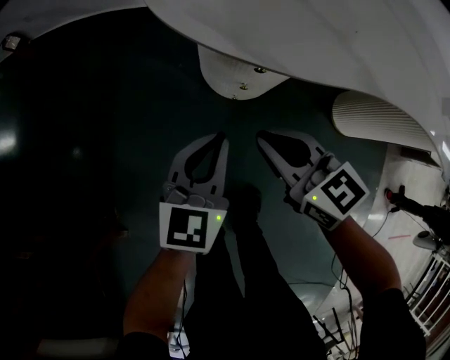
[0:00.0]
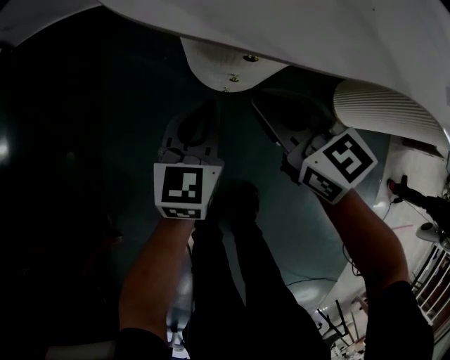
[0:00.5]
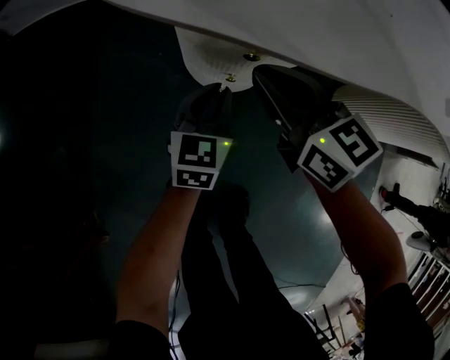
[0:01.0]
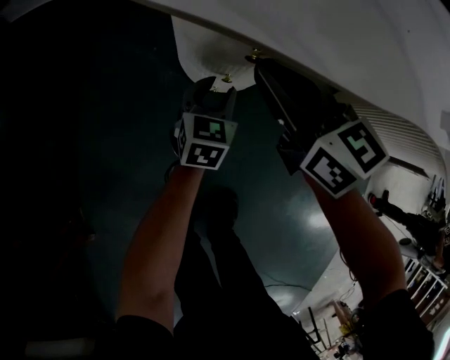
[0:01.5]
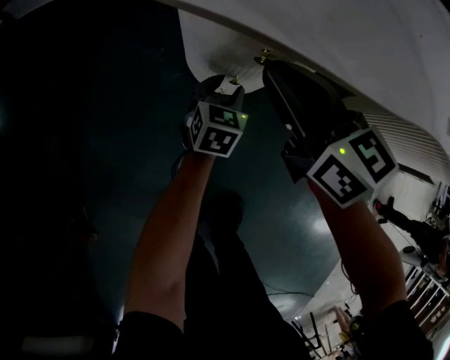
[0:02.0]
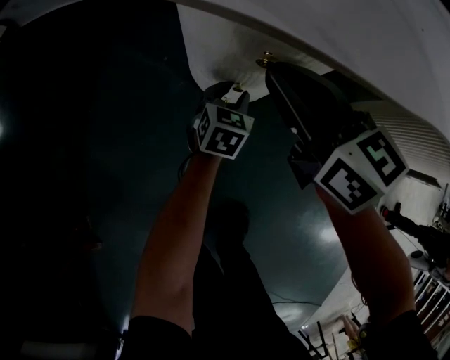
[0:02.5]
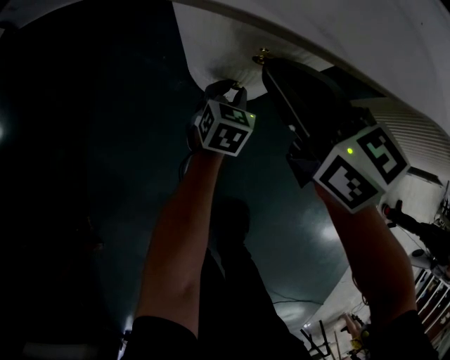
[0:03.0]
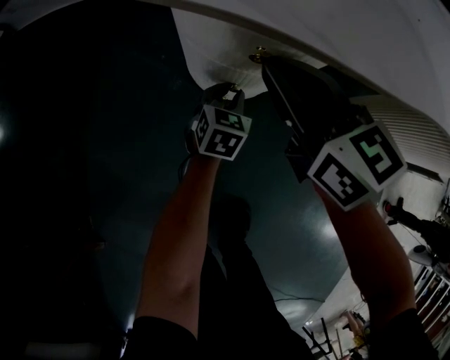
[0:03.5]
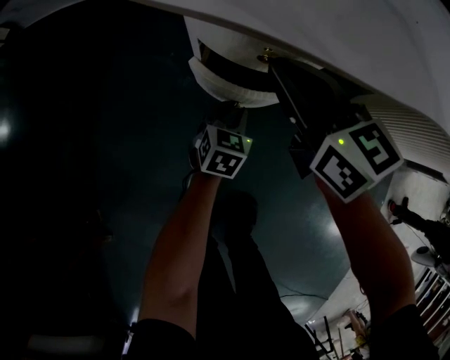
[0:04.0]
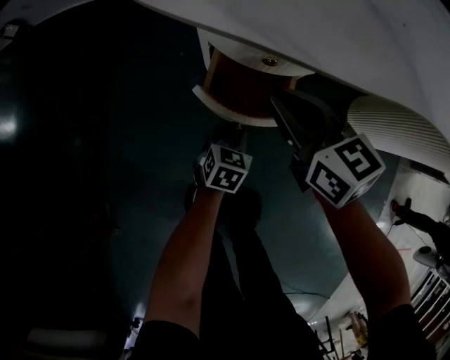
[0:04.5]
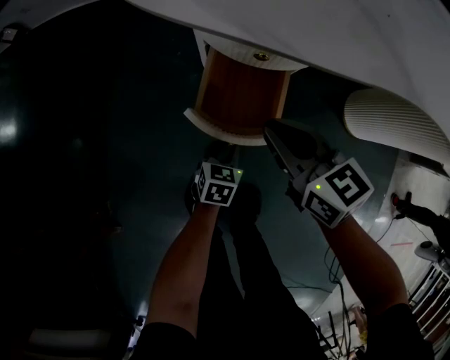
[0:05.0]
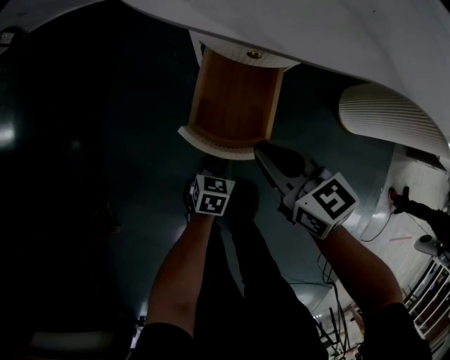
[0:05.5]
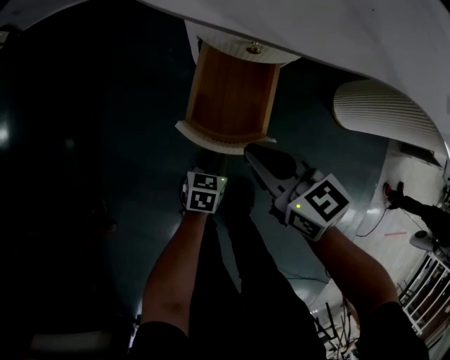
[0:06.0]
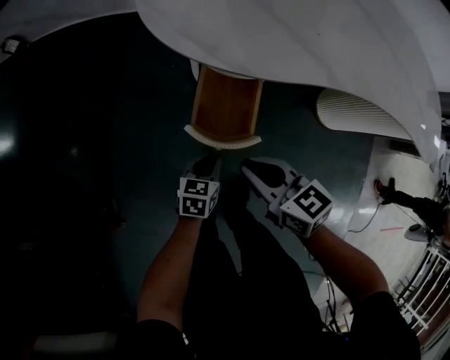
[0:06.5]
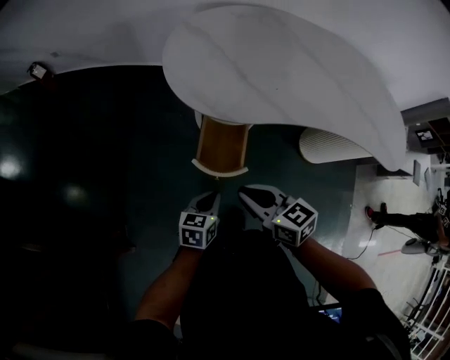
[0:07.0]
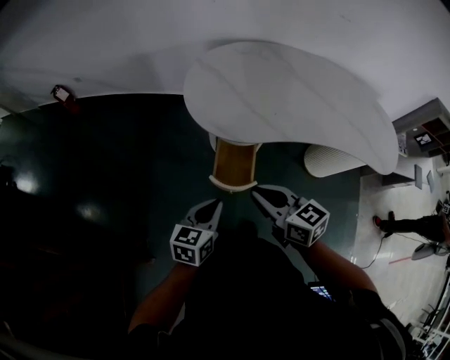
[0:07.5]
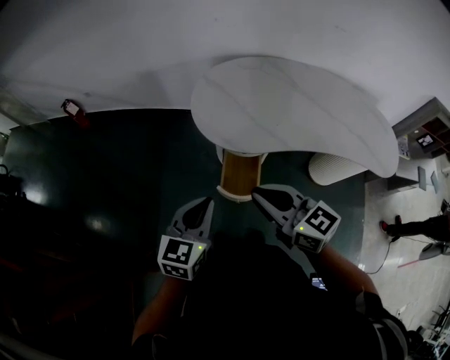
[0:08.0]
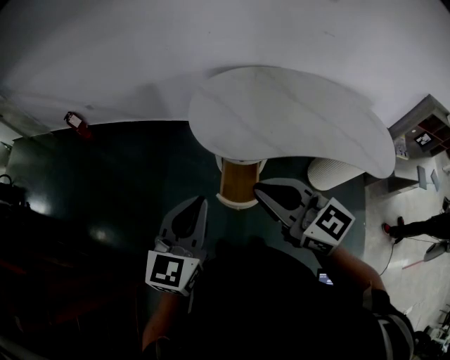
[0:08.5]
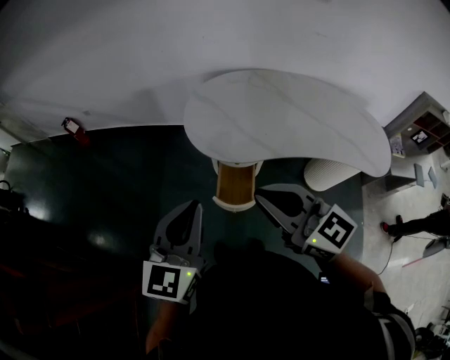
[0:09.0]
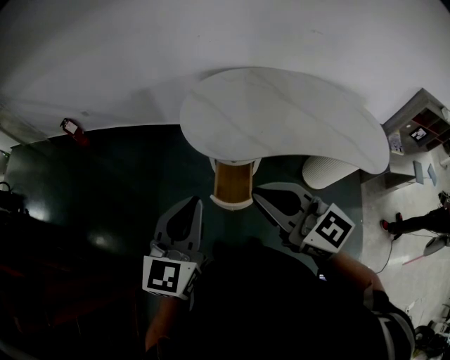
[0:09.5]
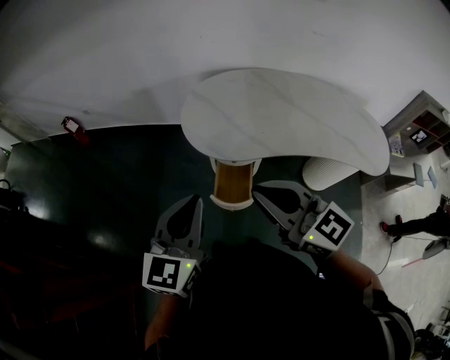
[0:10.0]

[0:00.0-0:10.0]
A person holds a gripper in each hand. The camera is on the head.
0:00.0 to 0:02.0: The left gripper heads downward and forward, covering approximately 30 cm, and opens; the right gripper shifts about 15 cm forward, downward and to the right.
0:02.0 to 0:04.0: The left gripper travels backward by about 5 cm.
0:04.0 to 0:06.0: The two grippers go roughly 15 cm backward.
0:06.0 to 0:08.0: The two grippers go approximately 60 cm upward. The left gripper changes its angle by about 30 degrees, and closes. The right gripper changes its angle by approximately 20 degrees.
0:08.0 to 0:10.0: The two grippers go roughly 10 cm upward.

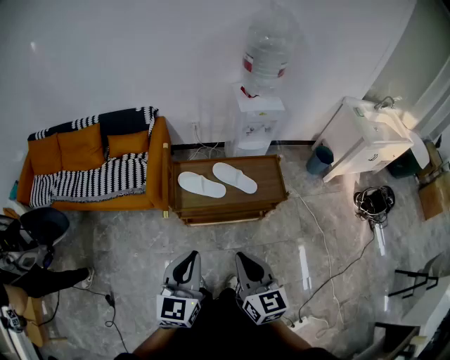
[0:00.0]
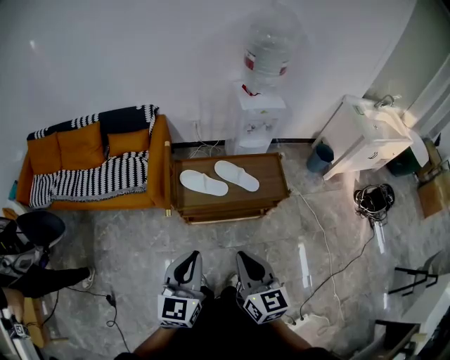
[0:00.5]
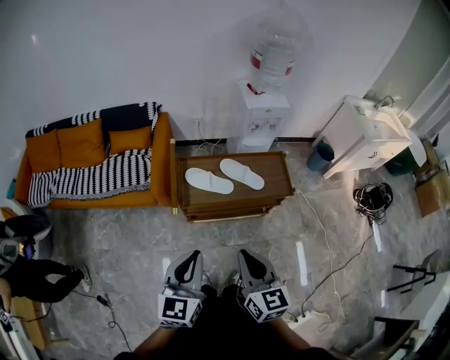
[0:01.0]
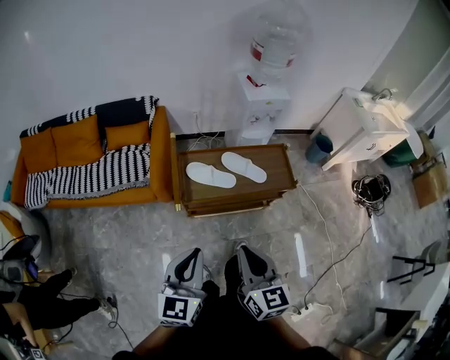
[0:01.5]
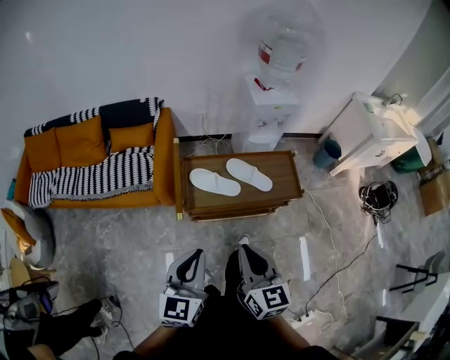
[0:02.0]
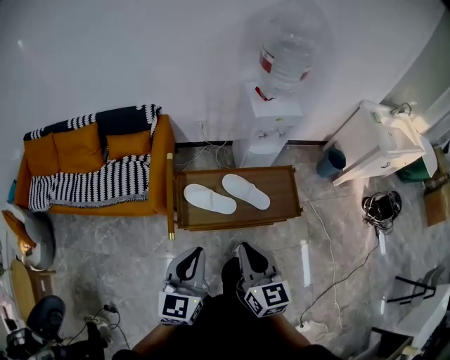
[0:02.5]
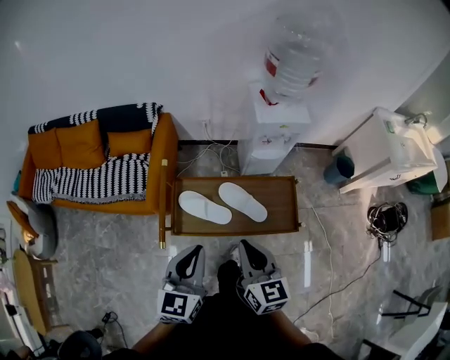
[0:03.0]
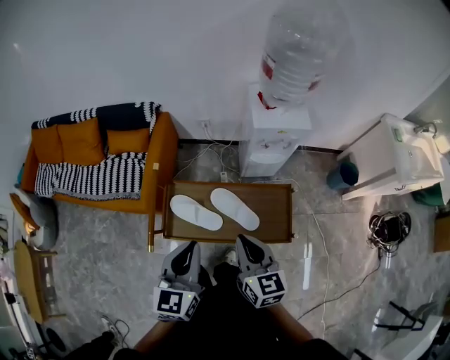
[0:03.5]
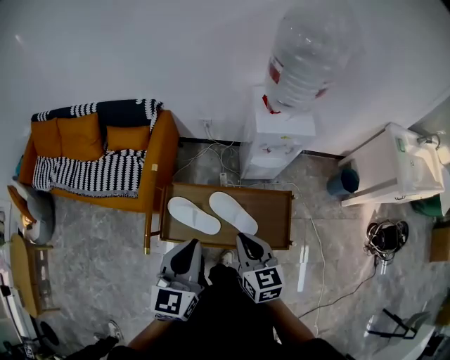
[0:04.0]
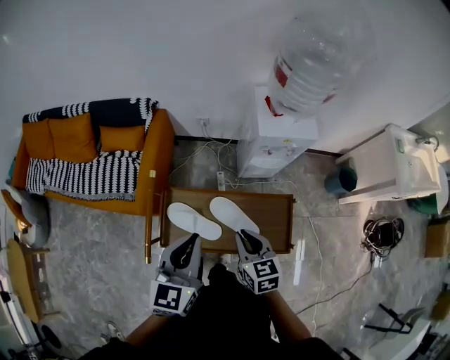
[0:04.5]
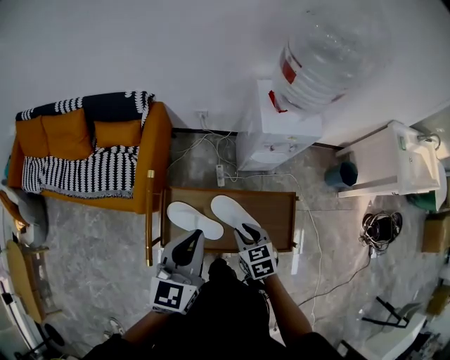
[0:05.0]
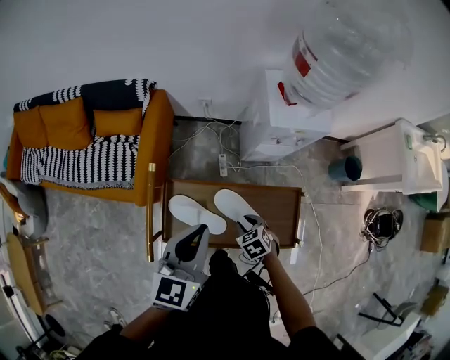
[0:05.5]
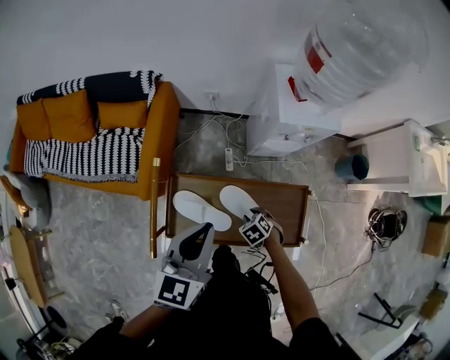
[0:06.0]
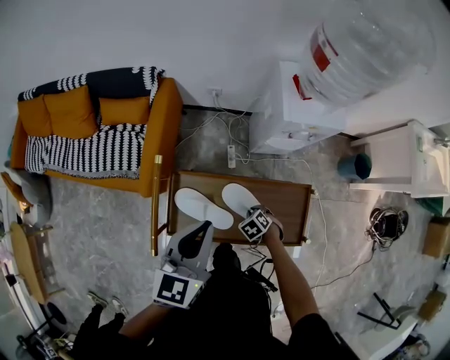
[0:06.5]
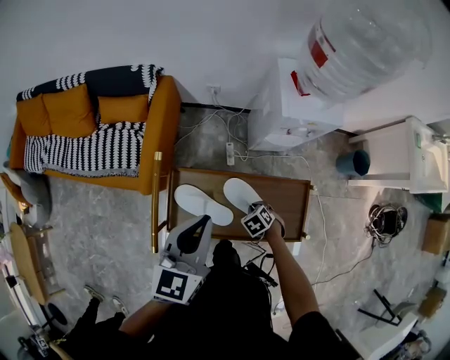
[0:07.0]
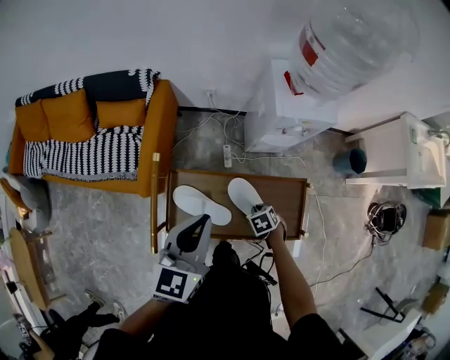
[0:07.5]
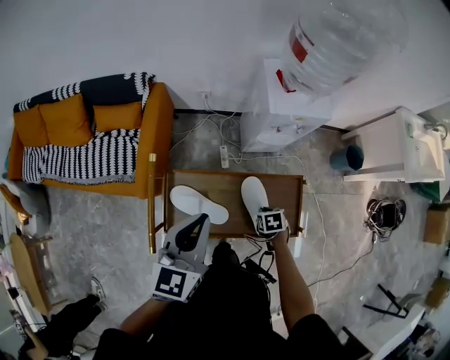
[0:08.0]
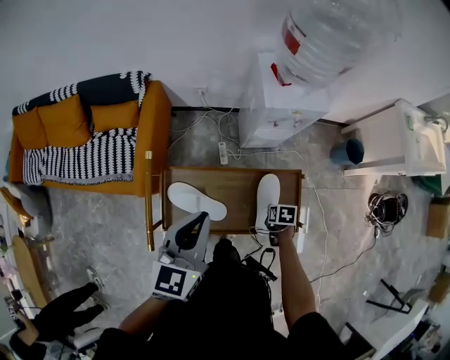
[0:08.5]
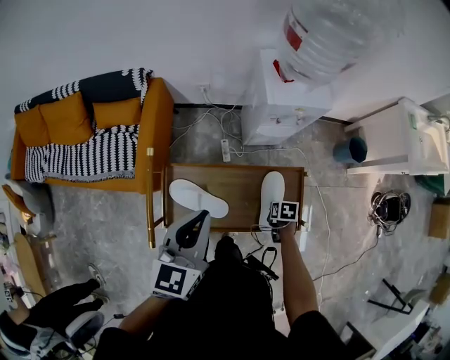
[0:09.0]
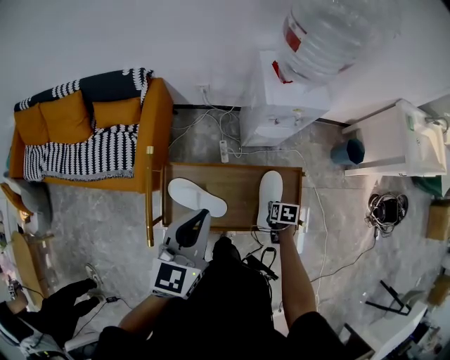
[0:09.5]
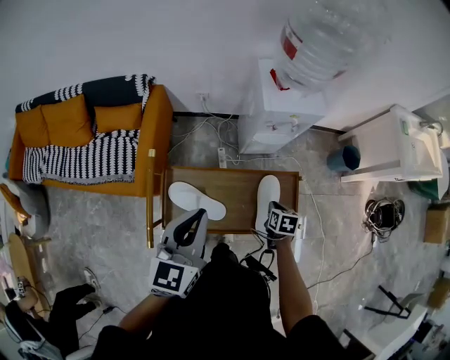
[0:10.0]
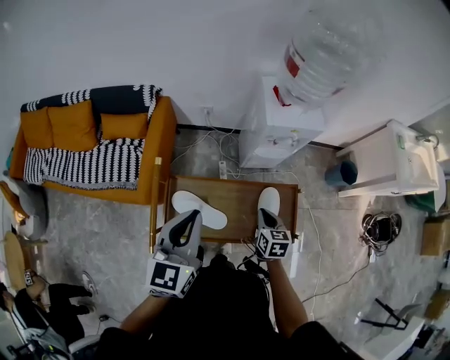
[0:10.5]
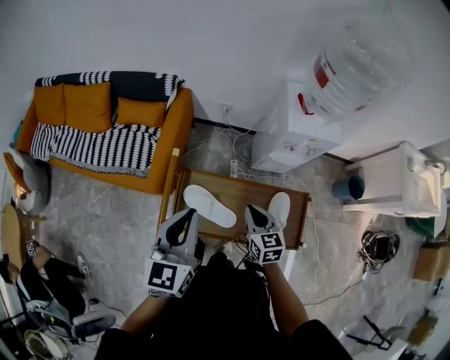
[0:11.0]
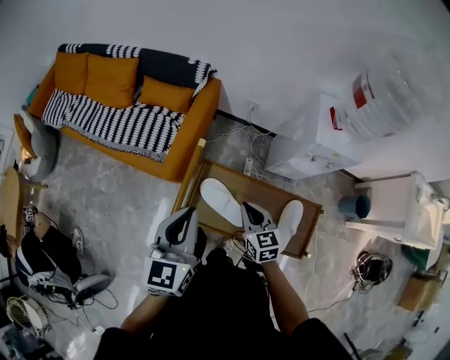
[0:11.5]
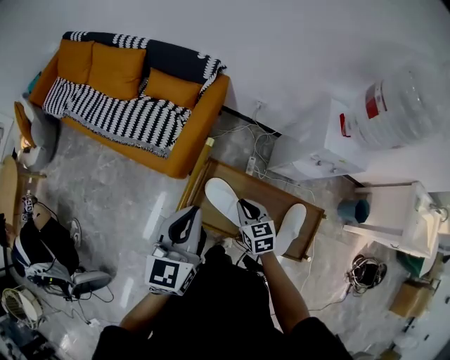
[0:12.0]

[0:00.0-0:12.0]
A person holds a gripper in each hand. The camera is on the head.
0:00.0 to 0:02.0: The right gripper moves to the left and forward, roughly 10 cm. The left gripper shifts roughly 5 cm to the left.
0:02.0 to 0:04.0: Both grippers move forward and to the right, roughly 30 cm.
0:04.0 to 0:06.0: The left gripper moves approximately 15 cm. The right gripper moves downward, roughly 30 cm, angles its fingers downward, by roughly 50 degrees, and opens its fingers.
0:06.0 to 0:08.0: The right gripper changes place by roughly 10 cm, and changes its angle by some 40 degrees.
0:08.0 to 0:10.0: The right gripper is displaced upward by about 5 cm, and rotates some 20 degrees.
0:10.0 to 0:12.0: The left gripper shifts by some 20 cm, and swivels approximately 20 degrees; the right gripper moves about 35 cm, and turns by some 50 degrees.

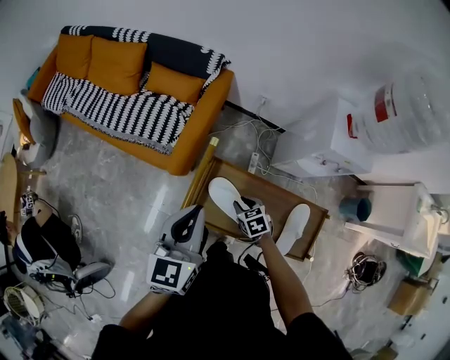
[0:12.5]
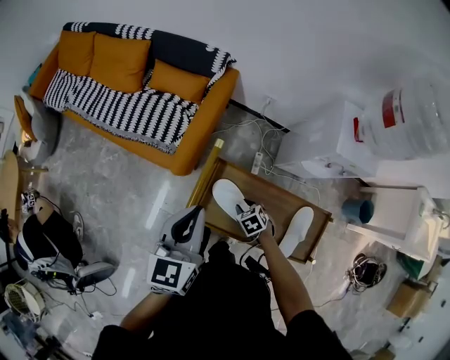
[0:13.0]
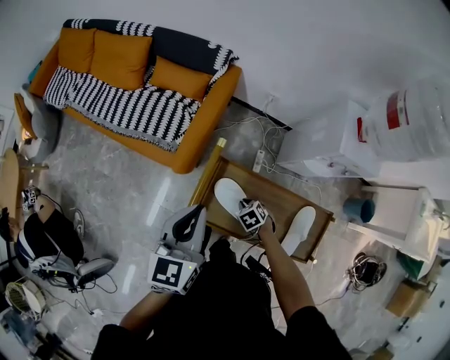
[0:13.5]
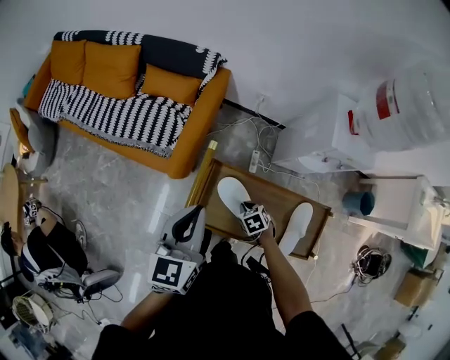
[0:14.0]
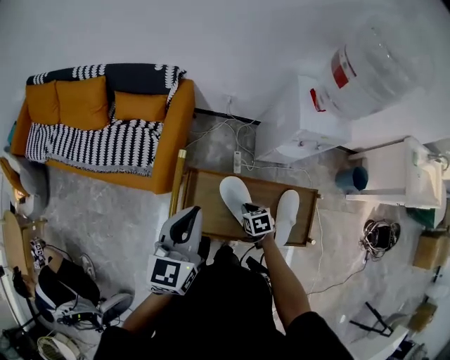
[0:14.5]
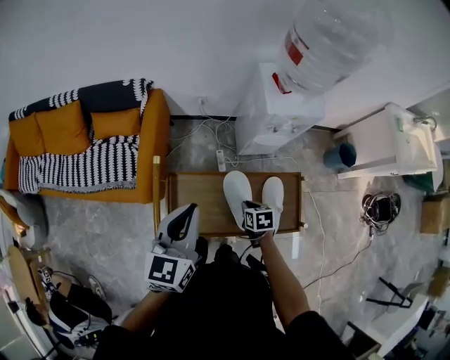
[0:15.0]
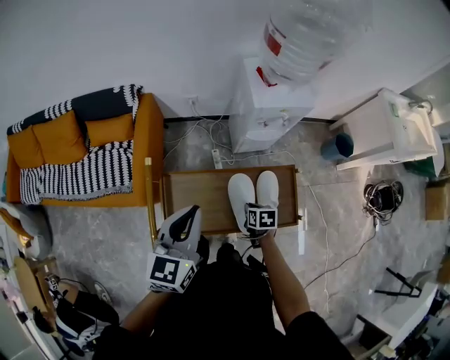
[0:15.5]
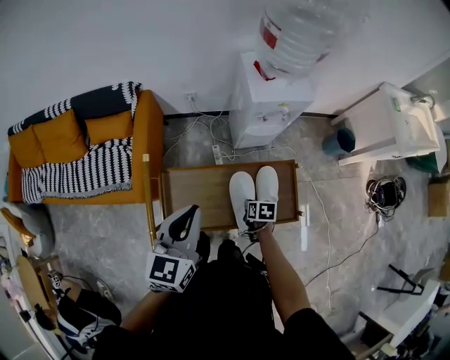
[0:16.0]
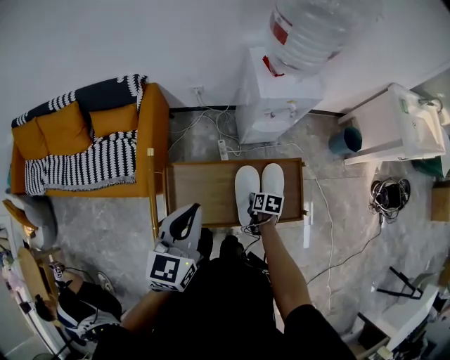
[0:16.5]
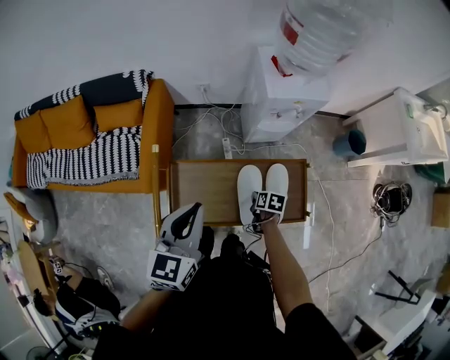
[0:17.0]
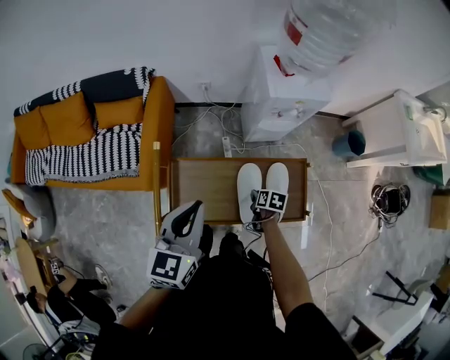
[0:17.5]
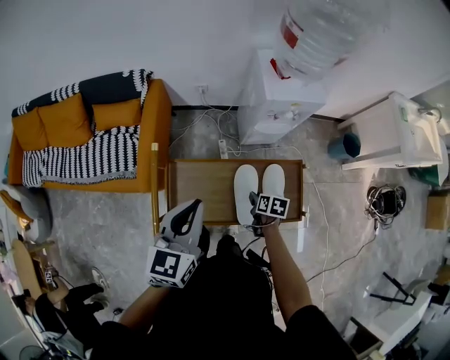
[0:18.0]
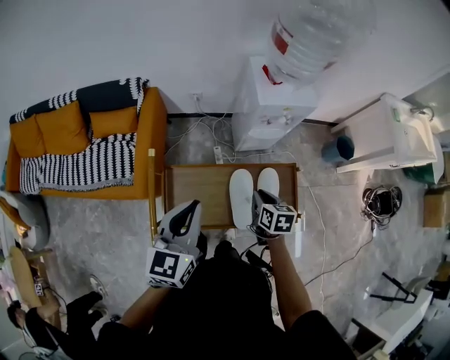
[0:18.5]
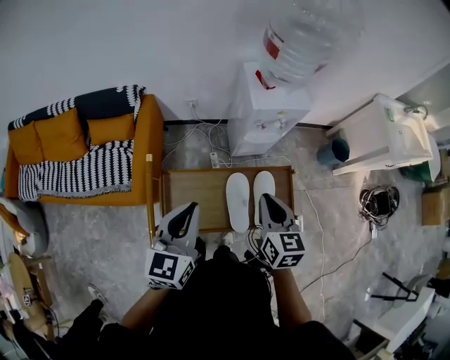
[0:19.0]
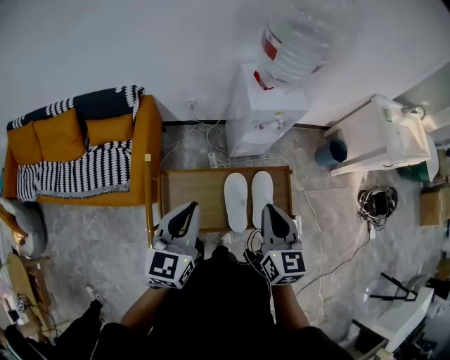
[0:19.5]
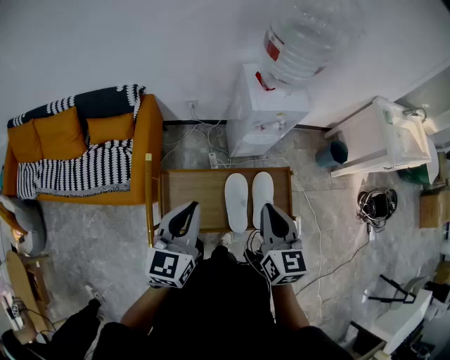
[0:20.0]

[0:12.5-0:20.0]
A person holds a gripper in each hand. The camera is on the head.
0:12.5 to 0:14.5: Both grippers travel together to the right, some 10 cm. The right gripper rotates approximately 20 degrees.
0:14.5 to 0:16.5: Both grippers move to the right, roughly 15 cm. The right gripper rotates around the line of its fingers by about 40 degrees, clockwise from behind.
0:16.5 to 0:18.0: The grippers move only a little.
0:18.0 to 0:20.0: The right gripper shifts approximately 35 cm upward, angles its fingers upward, by roughly 40 degrees, and closes.
